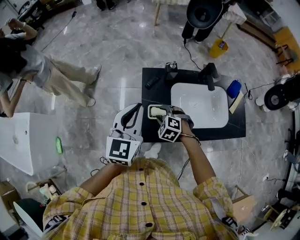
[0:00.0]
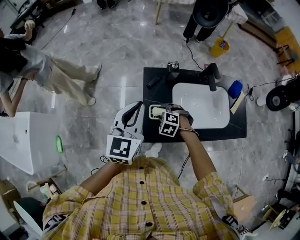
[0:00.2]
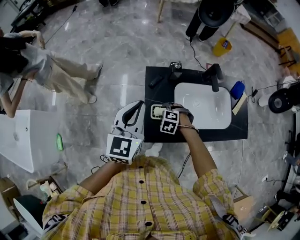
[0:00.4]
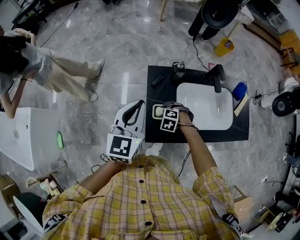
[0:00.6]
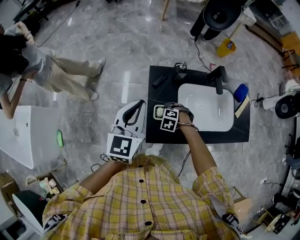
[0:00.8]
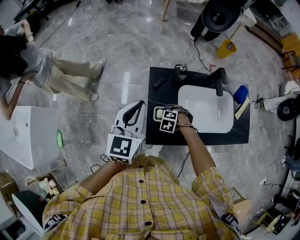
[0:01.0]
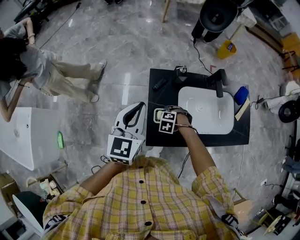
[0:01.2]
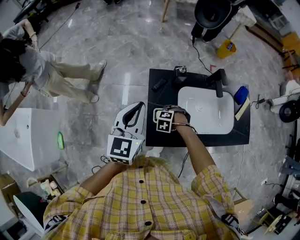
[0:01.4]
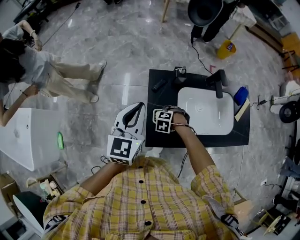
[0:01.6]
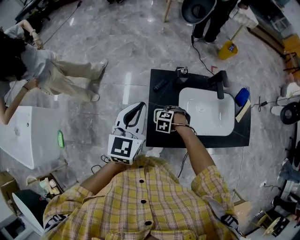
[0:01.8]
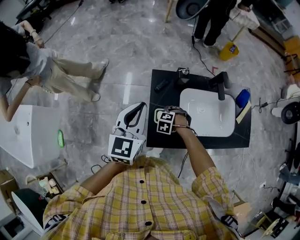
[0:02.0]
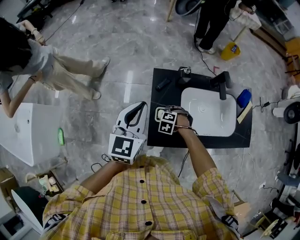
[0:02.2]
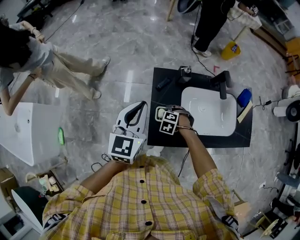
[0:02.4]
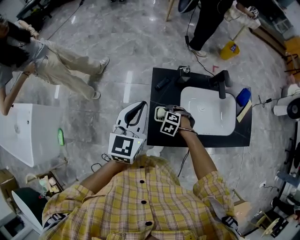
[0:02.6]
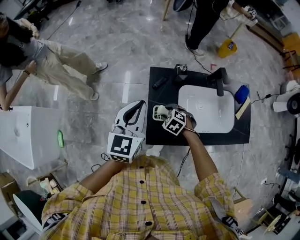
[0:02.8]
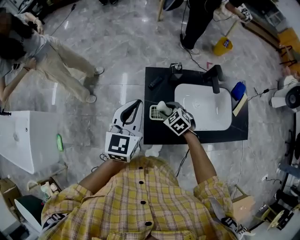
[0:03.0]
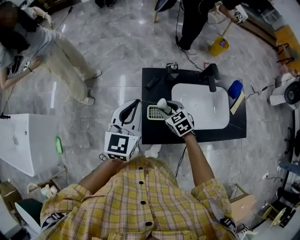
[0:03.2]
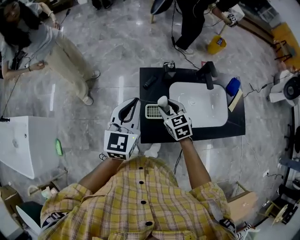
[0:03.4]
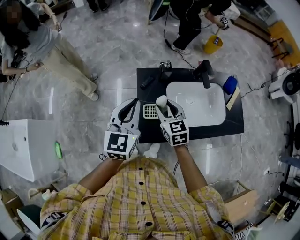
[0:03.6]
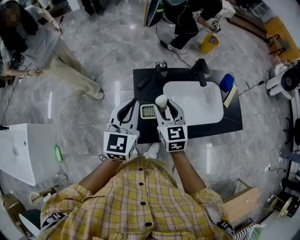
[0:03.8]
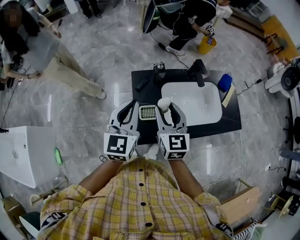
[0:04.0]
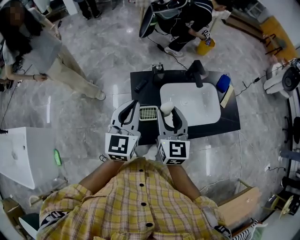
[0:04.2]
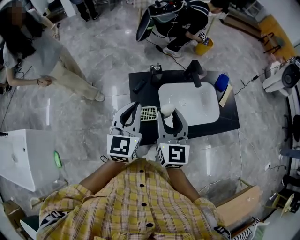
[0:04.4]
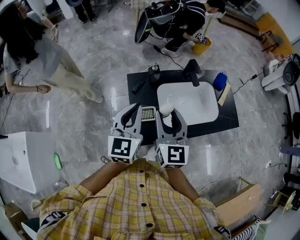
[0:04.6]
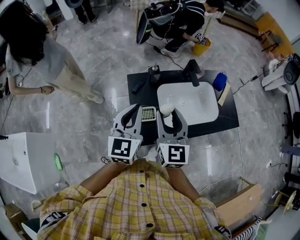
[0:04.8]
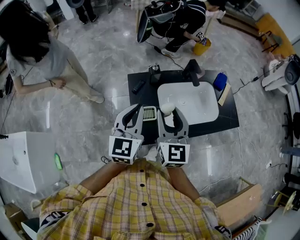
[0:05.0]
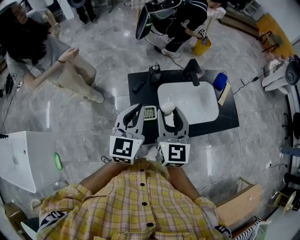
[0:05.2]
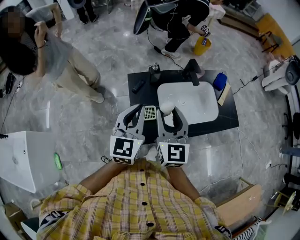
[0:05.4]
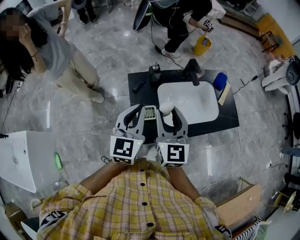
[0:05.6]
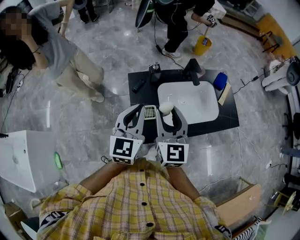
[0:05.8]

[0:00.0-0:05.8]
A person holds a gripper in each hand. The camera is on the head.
0:00.0 to 0:01.4: The left gripper changes place by about 5 cm, while the right gripper is displaced downward by about 10 cm, and turns by approximately 30 degrees.
0:01.4 to 0:02.8: The right gripper is displaced upward by roughly 5 cm, and rotates roughly 30 degrees.
0:02.8 to 0:04.4: The right gripper travels upward by approximately 30 cm, and tips its fingers upward by roughly 60 degrees. The left gripper shifts by roughly 10 cm.
0:04.4 to 0:05.8: The grippers stay close to where they were, moving slightly.

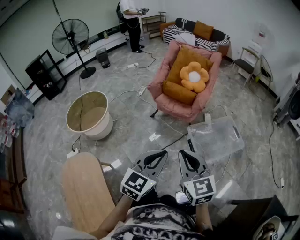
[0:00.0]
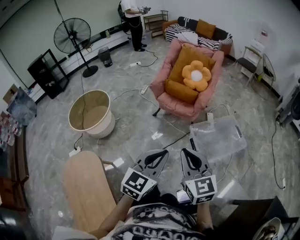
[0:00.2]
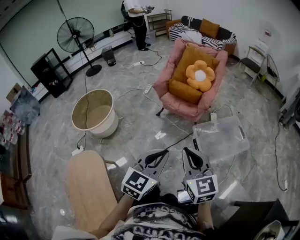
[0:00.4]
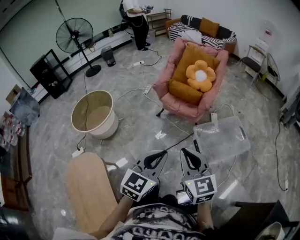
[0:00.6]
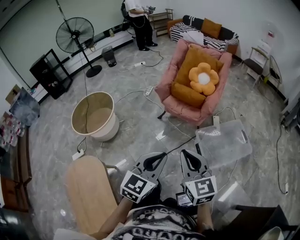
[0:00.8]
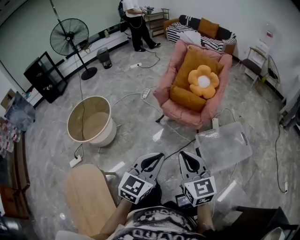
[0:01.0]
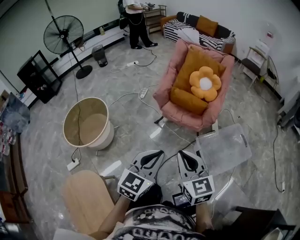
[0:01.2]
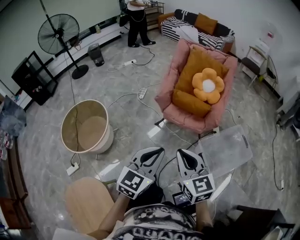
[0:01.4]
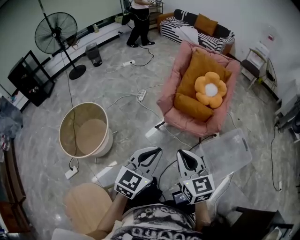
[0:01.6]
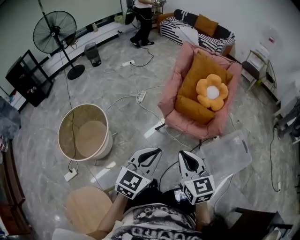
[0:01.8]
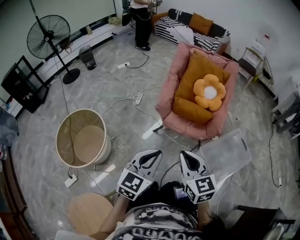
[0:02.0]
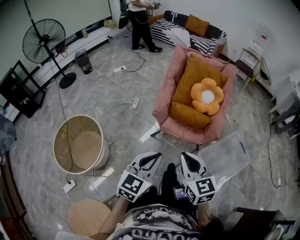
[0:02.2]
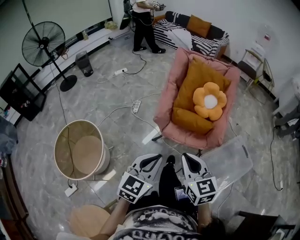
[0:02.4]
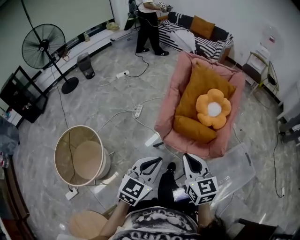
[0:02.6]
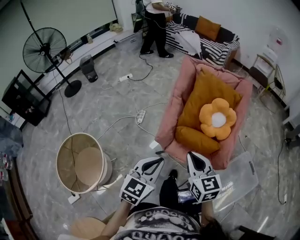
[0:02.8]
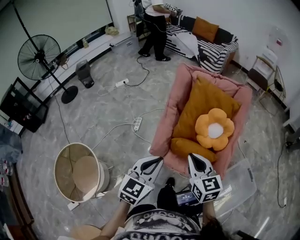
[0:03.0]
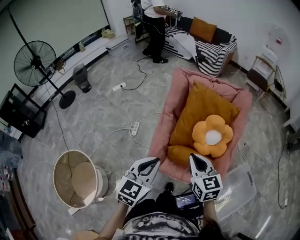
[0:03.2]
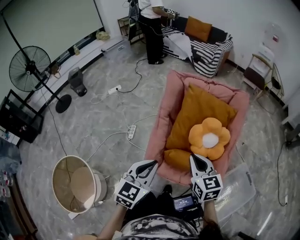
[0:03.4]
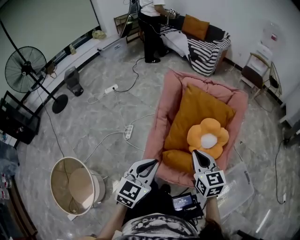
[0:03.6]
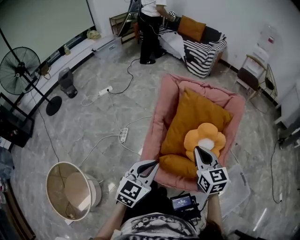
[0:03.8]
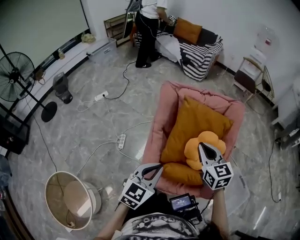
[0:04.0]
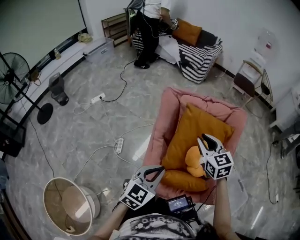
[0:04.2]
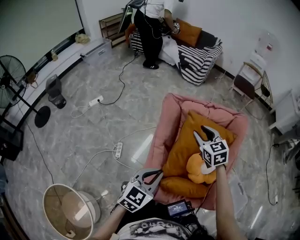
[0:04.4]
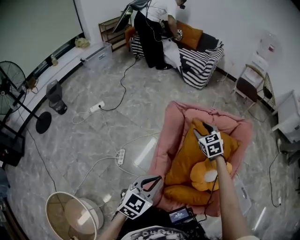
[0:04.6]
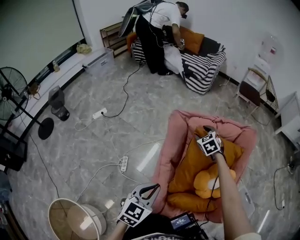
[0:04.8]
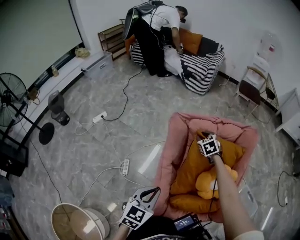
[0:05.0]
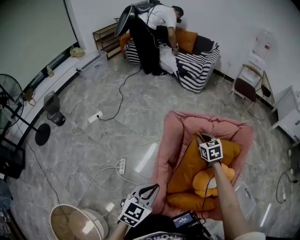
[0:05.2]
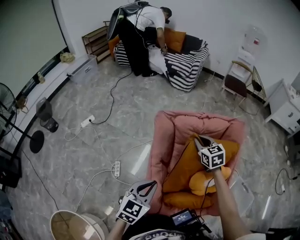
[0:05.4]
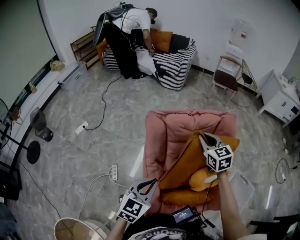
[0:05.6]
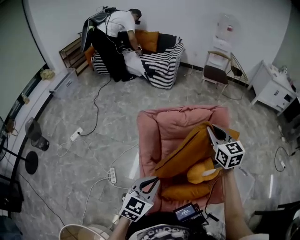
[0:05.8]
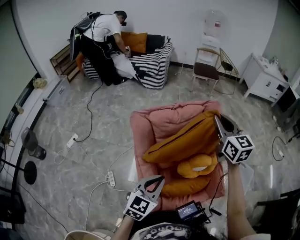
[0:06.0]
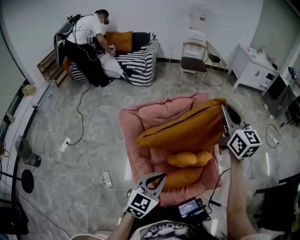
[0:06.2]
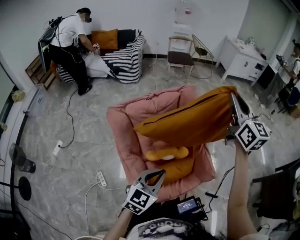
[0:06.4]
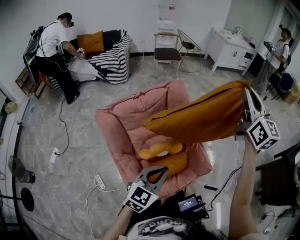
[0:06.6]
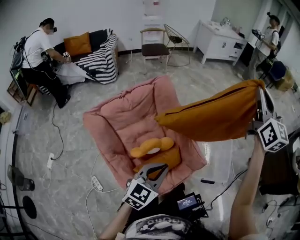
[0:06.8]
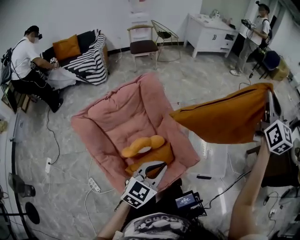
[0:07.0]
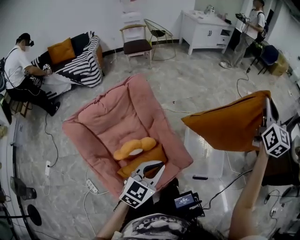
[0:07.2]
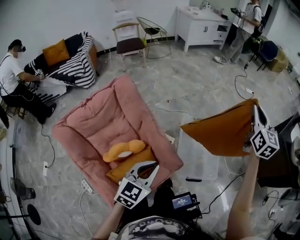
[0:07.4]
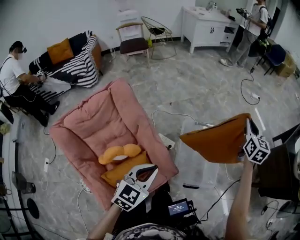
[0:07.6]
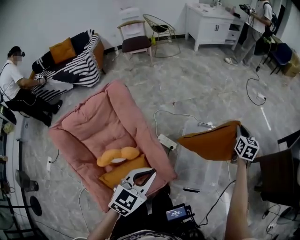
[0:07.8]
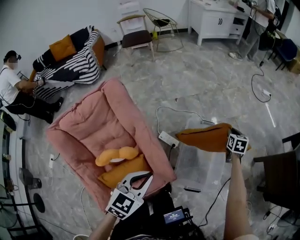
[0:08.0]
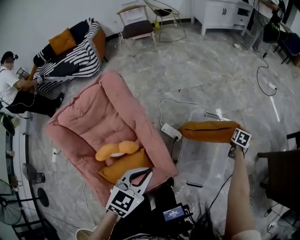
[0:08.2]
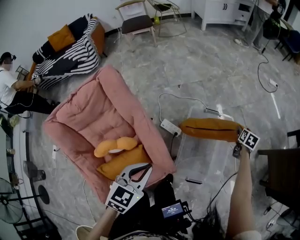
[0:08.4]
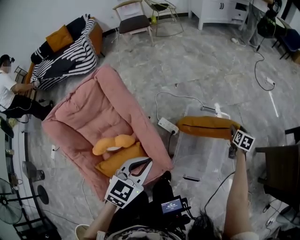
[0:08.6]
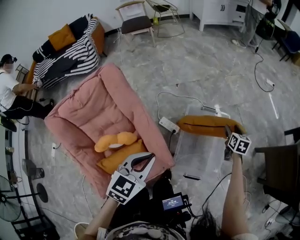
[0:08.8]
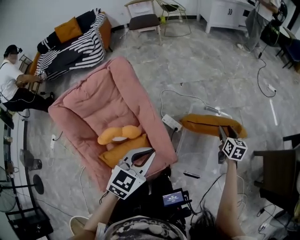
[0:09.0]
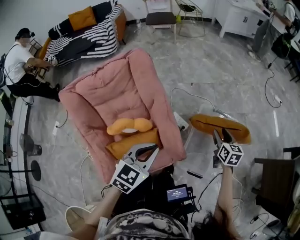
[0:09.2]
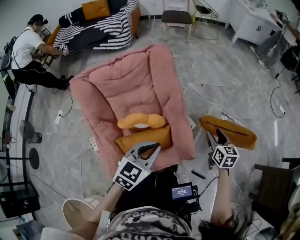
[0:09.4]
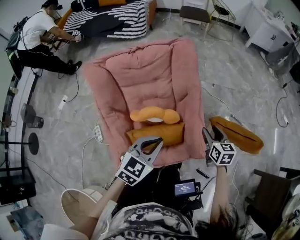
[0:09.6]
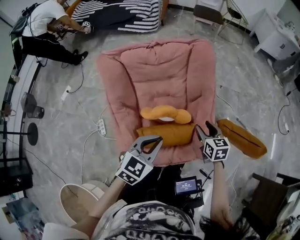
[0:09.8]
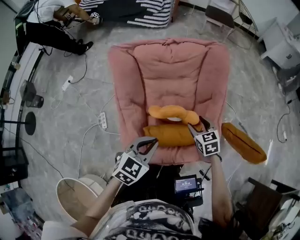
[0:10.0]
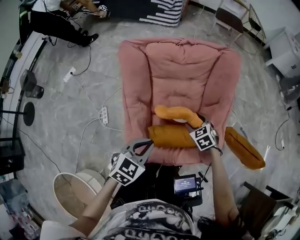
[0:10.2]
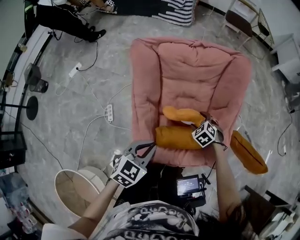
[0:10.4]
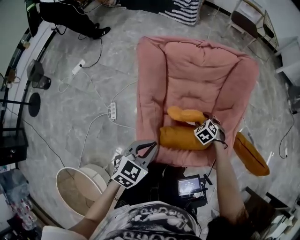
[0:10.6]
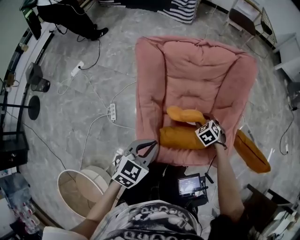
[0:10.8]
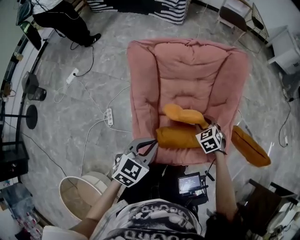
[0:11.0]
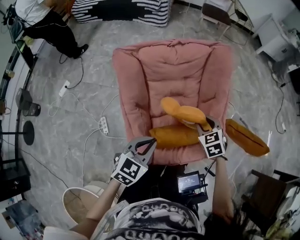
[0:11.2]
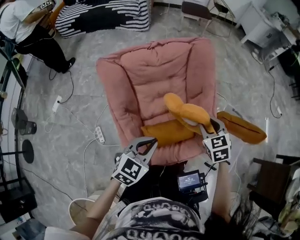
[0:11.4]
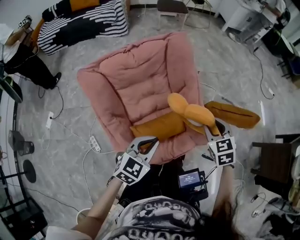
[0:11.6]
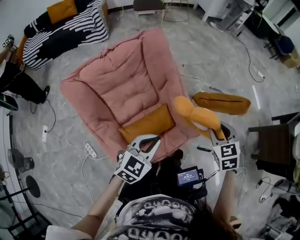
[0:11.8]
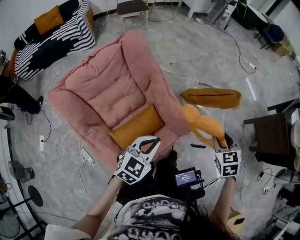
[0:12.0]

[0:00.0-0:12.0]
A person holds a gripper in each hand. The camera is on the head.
0:00.0 to 0:01.6: The two grippers go some 35 cm forward and to the left.
0:01.6 to 0:03.0: Both grippers travel together forward, approximately 35 cm.
0:03.0 to 0:04.4: The right gripper shifts roughly 40 cm forward, and opens, while the left gripper is displaced forward by approximately 25 cm.
0:04.4 to 0:06.0: The left gripper changes place by about 5 cm, while the right gripper heads to the right and upward, covering about 25 cm, turns by some 40 degrees, and closes up.
0:06.0 to 0:07.6: The left gripper ends up some 40 cm from where it was, and turns by some 30 degrees. Meanwhile the right gripper goes upward and returns, approximately 15 cm each way, and rotates roughly 50 degrees.
0:07.6 to 0:09.0: The right gripper travels downward by roughly 25 cm, rotates roughly 30 degrees, and opens.
0:09.0 to 0:10.4: The pair of grippers is taken some 50 cm. The right gripper twists about 80 degrees counterclockwise, seen from behind. The left gripper turns by about 30 degrees.
0:10.4 to 0:12.0: The left gripper changes place by about 25 cm, and rotates approximately 40 degrees. The right gripper changes place by some 50 cm, rotates around the line of its fingers by approximately 60 degrees, clockwise from behind, and closes up.

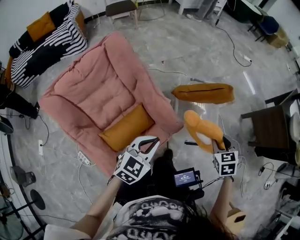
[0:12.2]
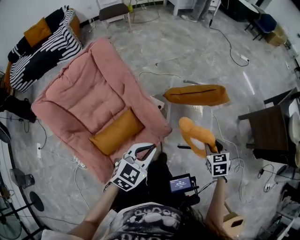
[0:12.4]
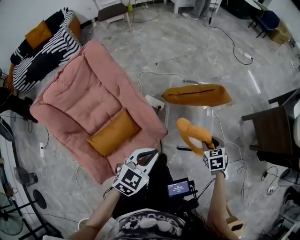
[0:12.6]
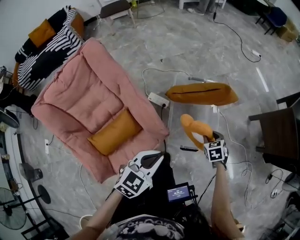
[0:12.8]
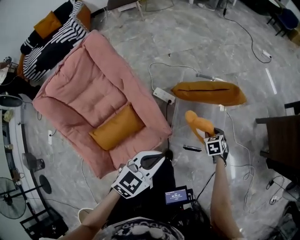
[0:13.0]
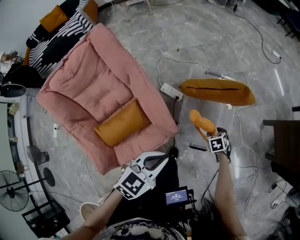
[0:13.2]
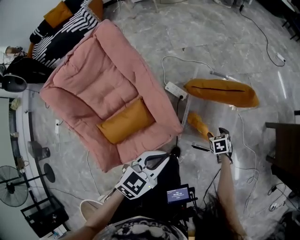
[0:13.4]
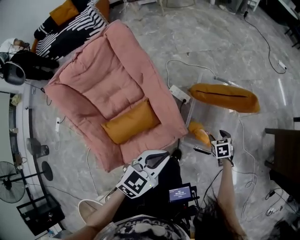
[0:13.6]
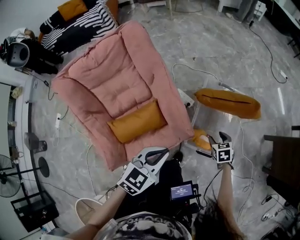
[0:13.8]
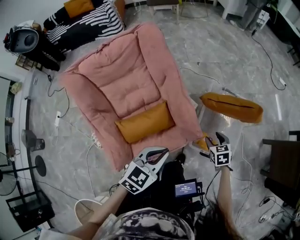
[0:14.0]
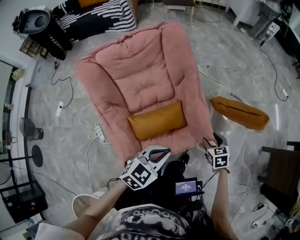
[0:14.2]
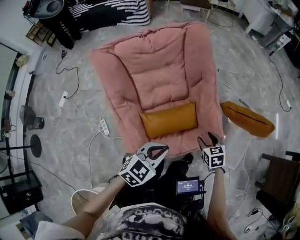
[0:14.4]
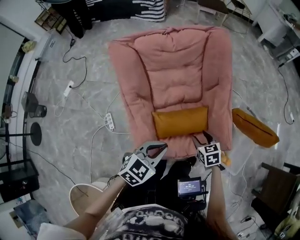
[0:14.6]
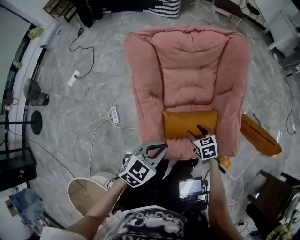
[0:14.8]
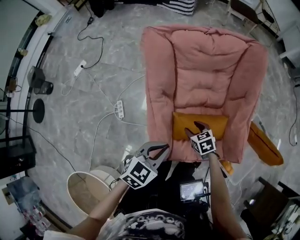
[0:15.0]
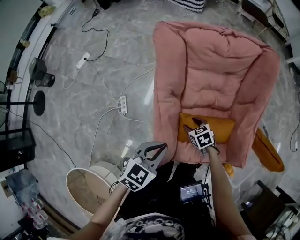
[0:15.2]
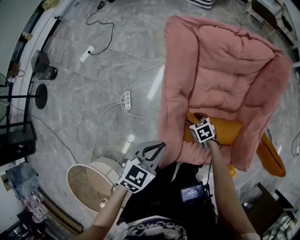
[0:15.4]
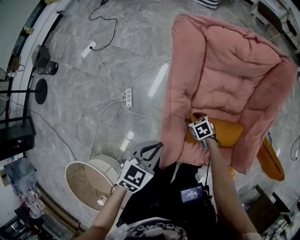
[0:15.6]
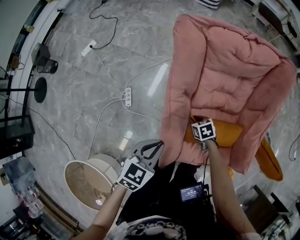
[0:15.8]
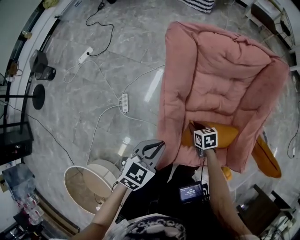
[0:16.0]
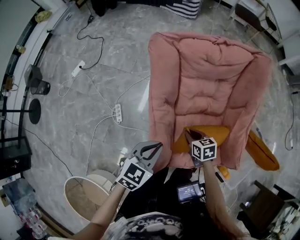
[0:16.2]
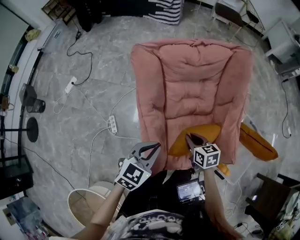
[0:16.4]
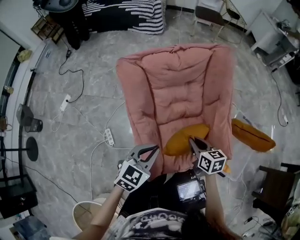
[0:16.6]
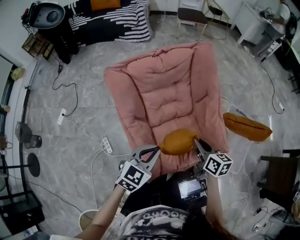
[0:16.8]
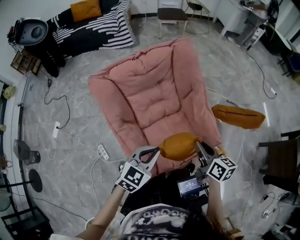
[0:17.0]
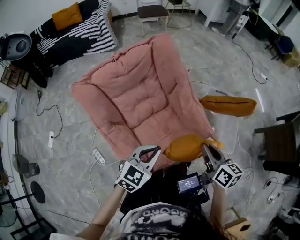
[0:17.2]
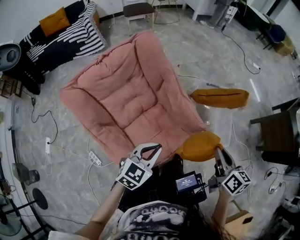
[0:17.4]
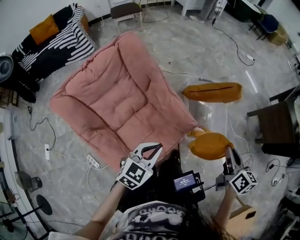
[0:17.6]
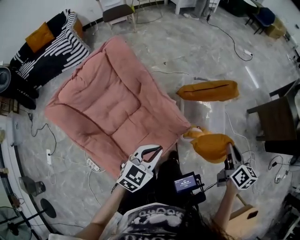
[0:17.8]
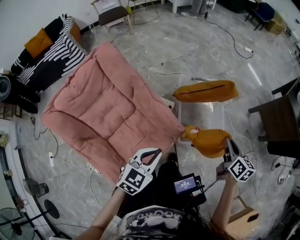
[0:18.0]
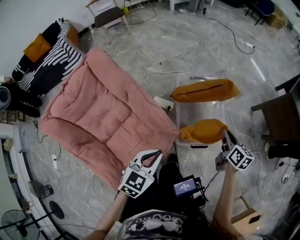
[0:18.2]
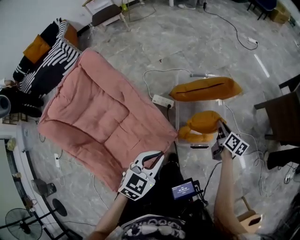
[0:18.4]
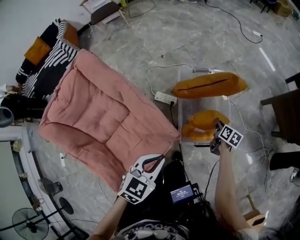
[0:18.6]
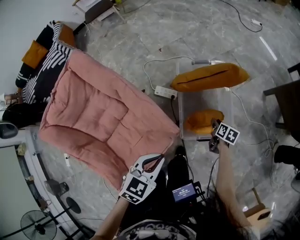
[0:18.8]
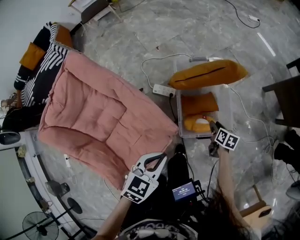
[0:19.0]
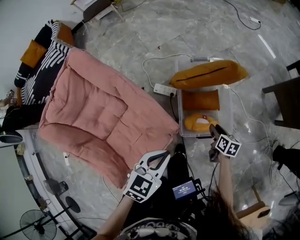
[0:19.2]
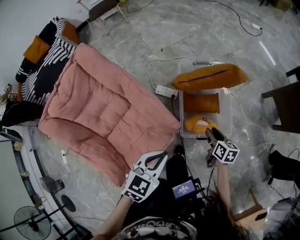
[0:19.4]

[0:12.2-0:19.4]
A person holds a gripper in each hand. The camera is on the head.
0:12.2 to 0:13.6: The right gripper moves downward, about 25 cm, swivels roughly 20 degrees, and opens up; the left gripper shifts by some 10 cm.
0:13.6 to 0:15.0: Both grippers are carried some 50 cm. The right gripper swivels approximately 40 degrees; the left gripper rotates some 30 degrees.
0:15.0 to 0:16.6: The right gripper moves upward, approximately 15 cm, turns by some 40 degrees, and closes its fingers.
0:16.6 to 0:18.0: The right gripper changes place by roughly 60 cm, and rotates some 60 degrees. The left gripper changes place by some 35 cm, and changes its angle by approximately 30 degrees.
0:18.0 to 0:19.4: The left gripper moves to the right, roughly 10 cm, while the right gripper goes about 20 cm downward, and opens.
